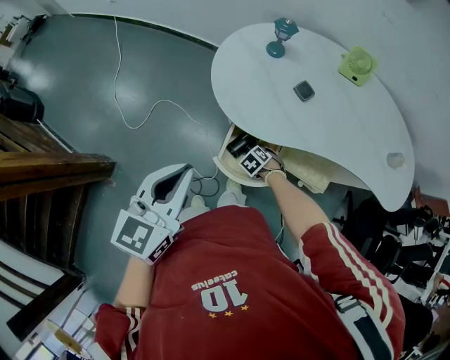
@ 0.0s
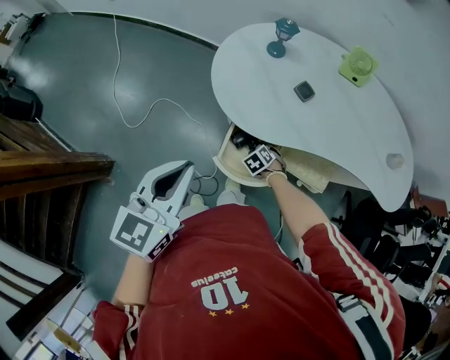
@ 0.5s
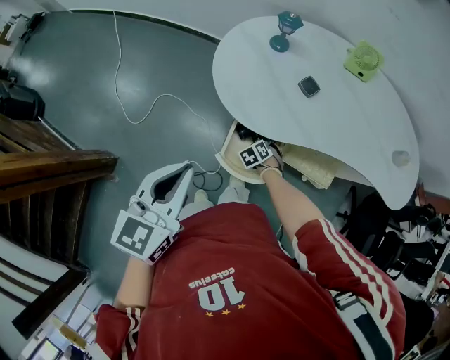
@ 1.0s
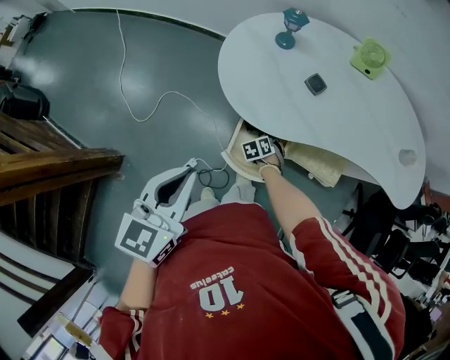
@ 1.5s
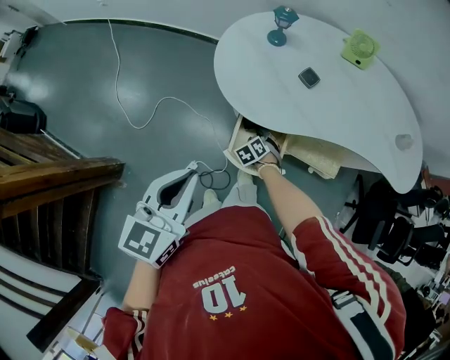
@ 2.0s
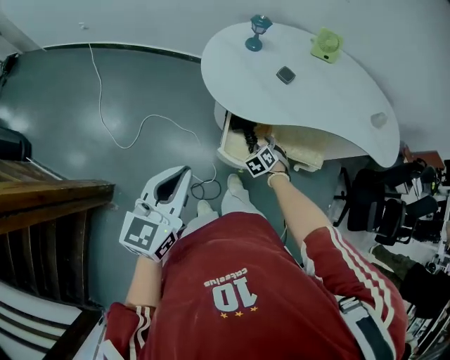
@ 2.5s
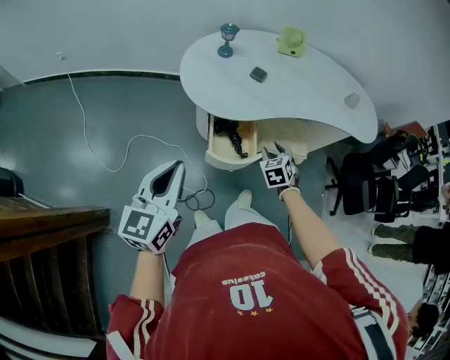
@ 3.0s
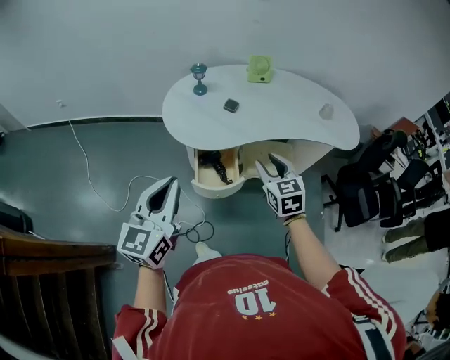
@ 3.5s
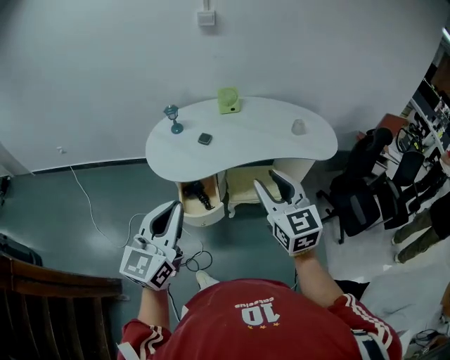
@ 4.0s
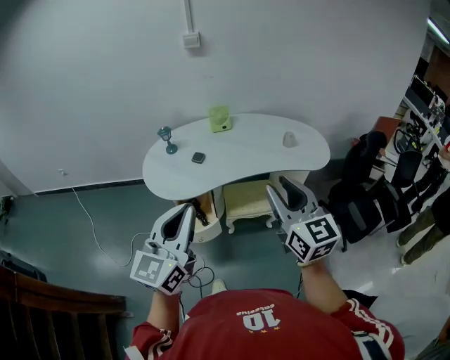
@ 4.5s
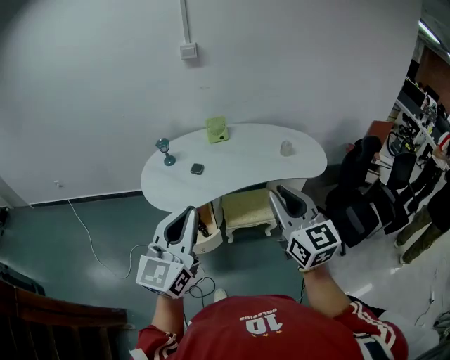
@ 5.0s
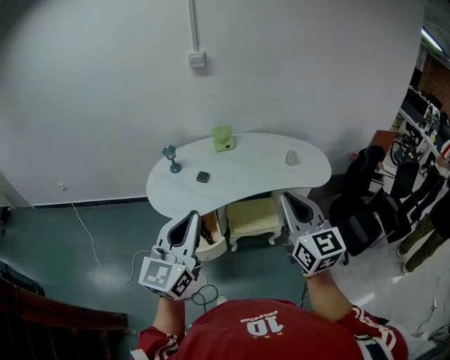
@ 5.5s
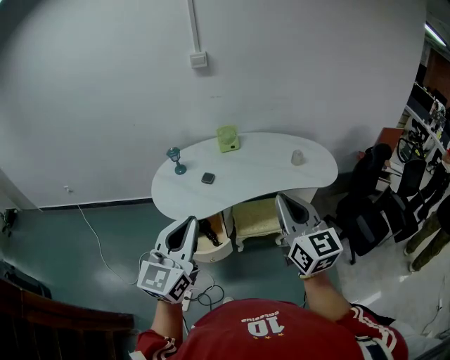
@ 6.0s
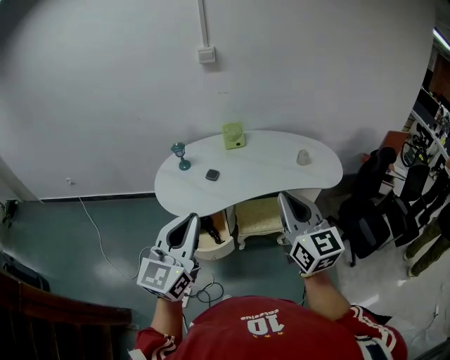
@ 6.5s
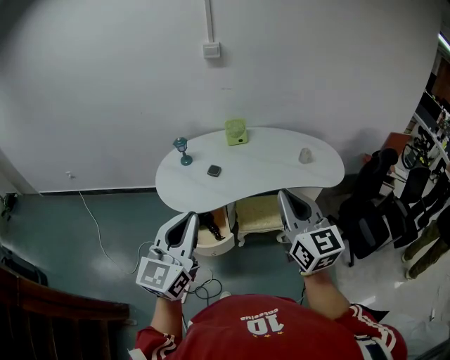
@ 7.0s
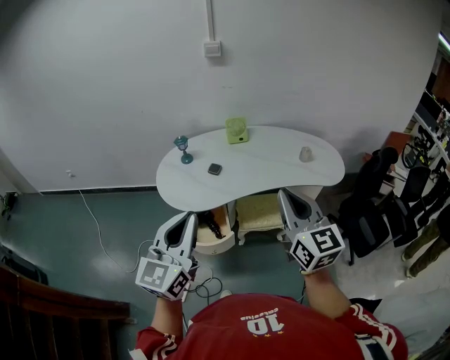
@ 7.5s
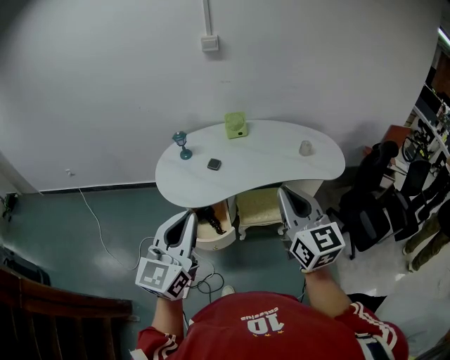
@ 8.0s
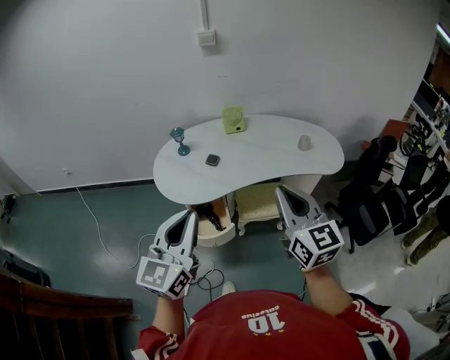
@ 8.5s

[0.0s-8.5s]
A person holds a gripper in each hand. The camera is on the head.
0.0s to 2.0s: The right gripper swivels some 20 degrees.
2.0s to 4.0s: The right gripper shifts roughly 60 cm upward and to the right, and angles its fingers upward, by approximately 60 degrees. Meanwhile the left gripper is displaced upward, to the right and backward by roughly 25 cm, and rotates approximately 30 degrees.
4.0s to 6.5s: The right gripper heads upward, covering some 5 cm, and closes up; the left gripper shifts by some 5 cm.
6.5s to 8.5s: The grippers stay close to where they were, moving slightly.

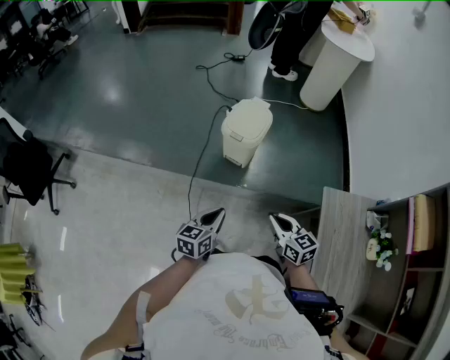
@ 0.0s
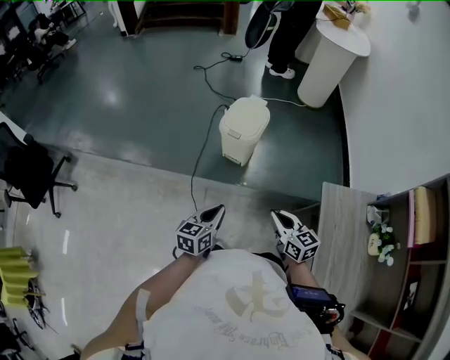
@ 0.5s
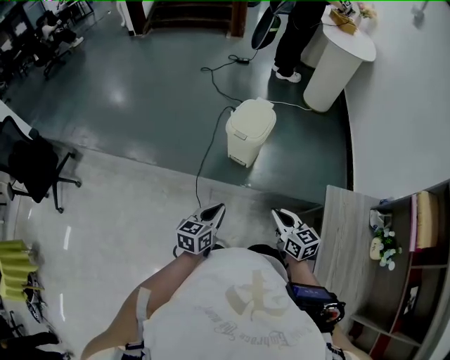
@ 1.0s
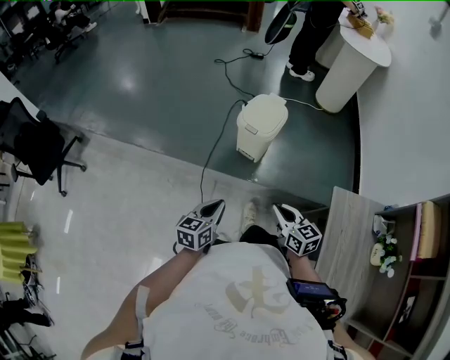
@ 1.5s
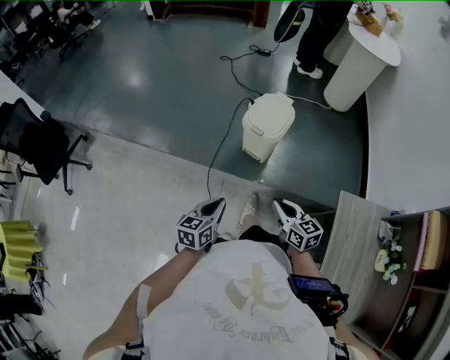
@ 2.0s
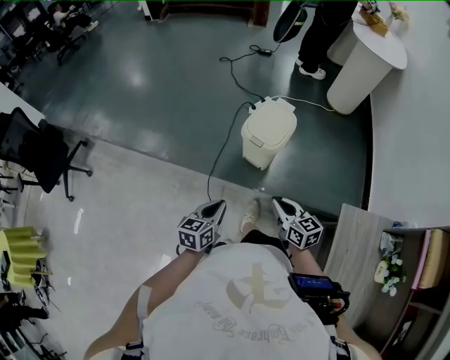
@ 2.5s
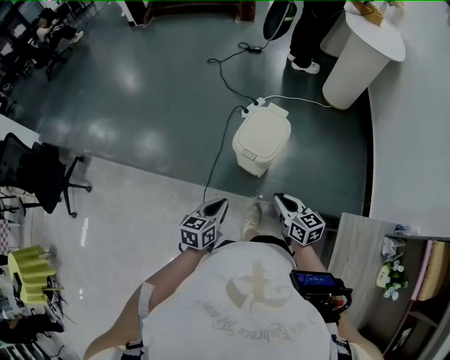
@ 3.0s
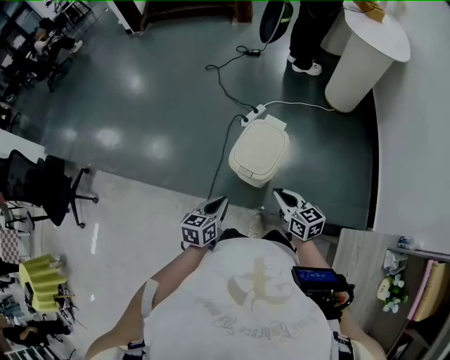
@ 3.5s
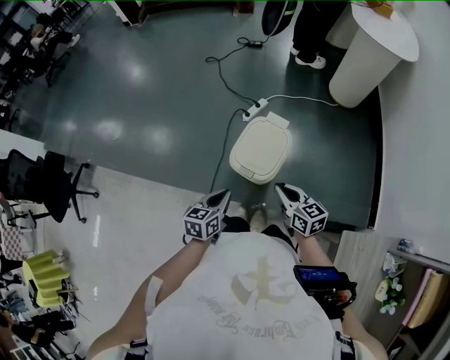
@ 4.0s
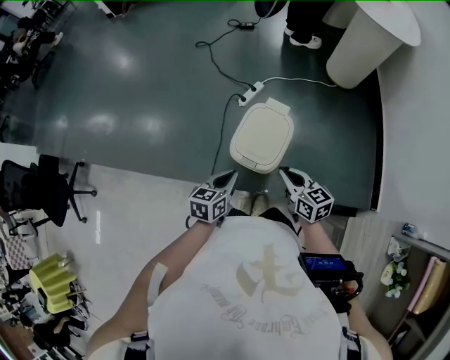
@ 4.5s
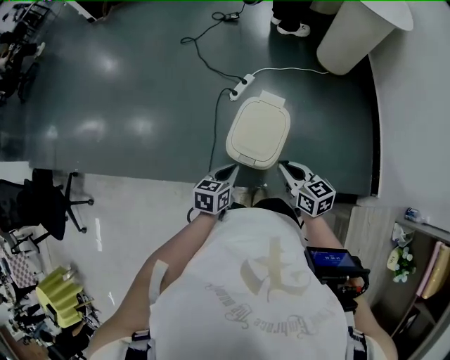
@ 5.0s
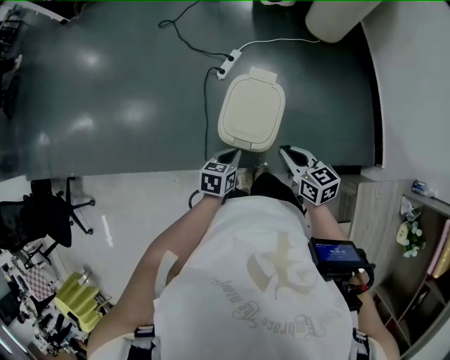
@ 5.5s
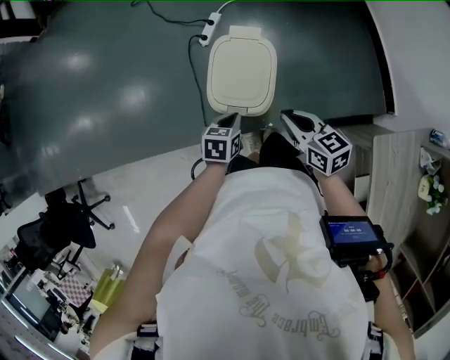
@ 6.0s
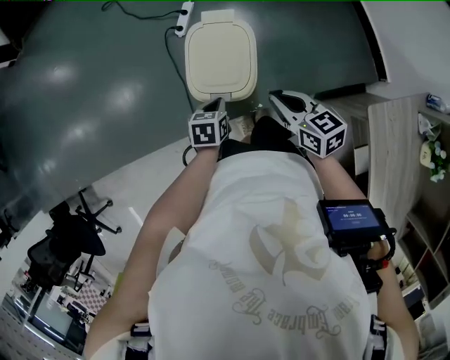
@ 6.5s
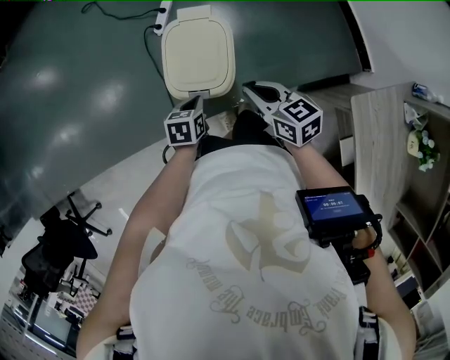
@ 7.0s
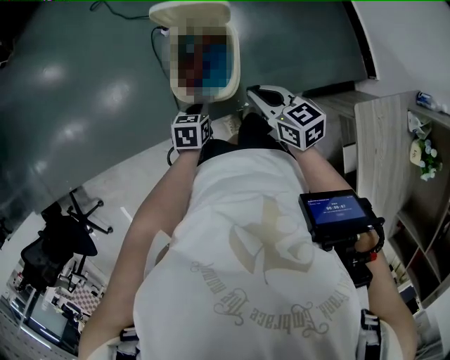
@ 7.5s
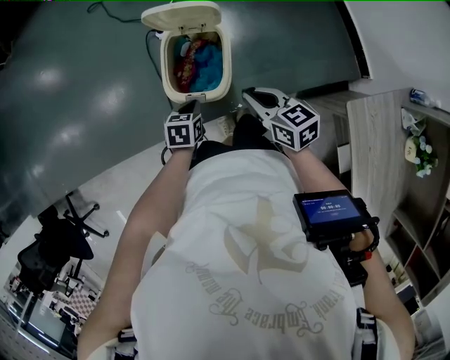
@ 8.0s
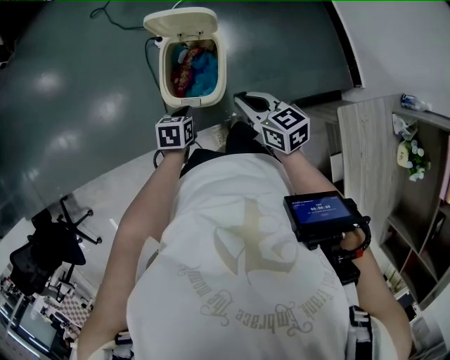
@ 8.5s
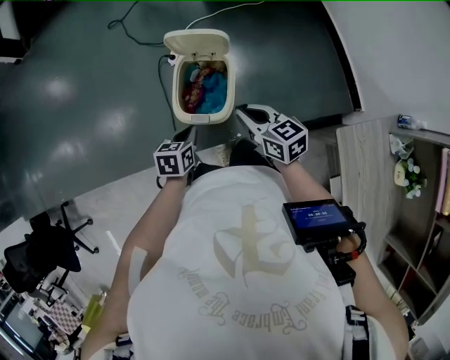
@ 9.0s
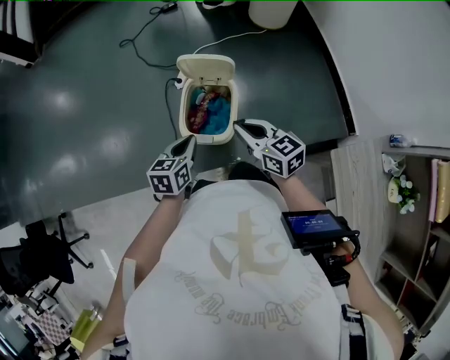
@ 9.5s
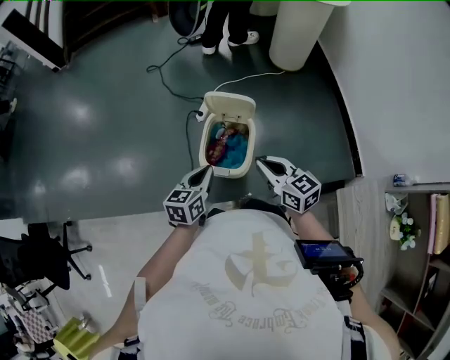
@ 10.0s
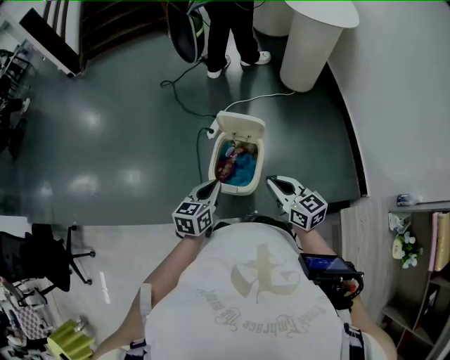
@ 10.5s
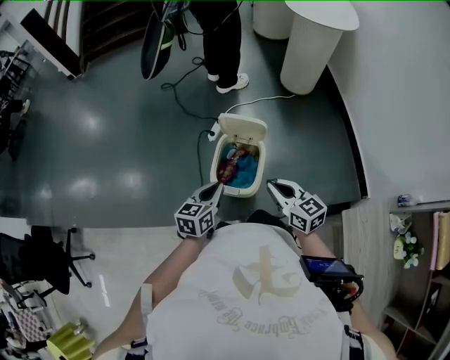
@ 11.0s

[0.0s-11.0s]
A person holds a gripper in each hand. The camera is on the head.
0.0s to 2.0s: The left gripper ends up some 5 cm from where it was. The right gripper shifts roughly 5 cm forward.
2.0s to 3.5s: Both grippers travel together forward, roughly 25 cm.
3.5s to 5.5s: The right gripper is displaced forward and downward by about 10 cm, while the left gripper travels forward and downward by approximately 15 cm, and changes its angle by roughly 20 degrees.
5.5s to 7.5s: The left gripper heads downward, covering roughly 5 cm.
7.5s to 9.0s: The left gripper moves roughly 5 cm.
9.0s to 11.0s: The right gripper travels upward by approximately 10 cm; the left gripper goes about 15 cm upward, and rotates about 20 degrees.

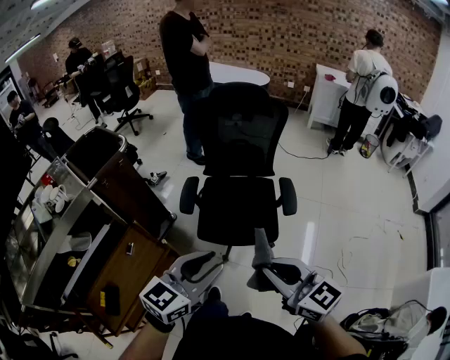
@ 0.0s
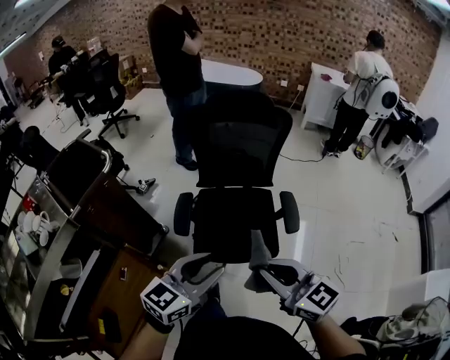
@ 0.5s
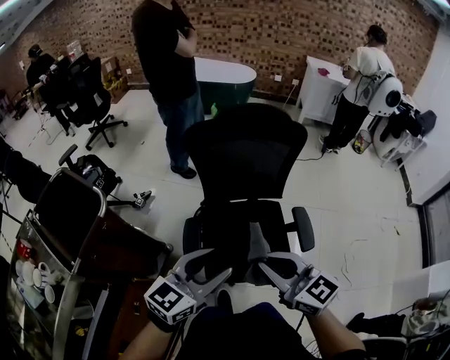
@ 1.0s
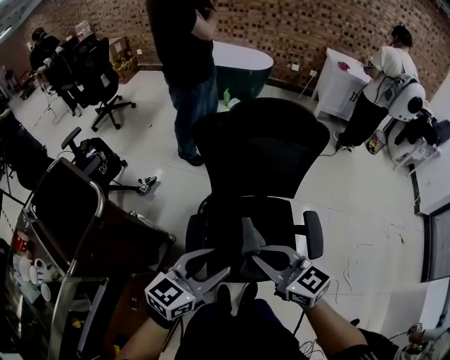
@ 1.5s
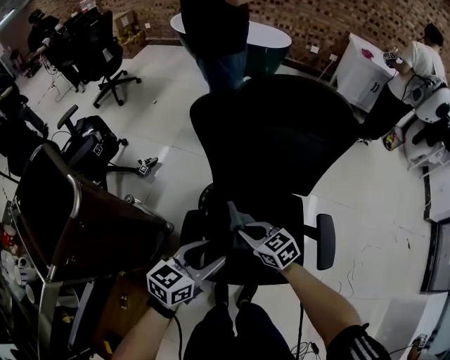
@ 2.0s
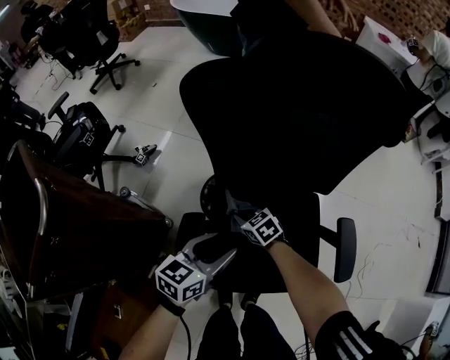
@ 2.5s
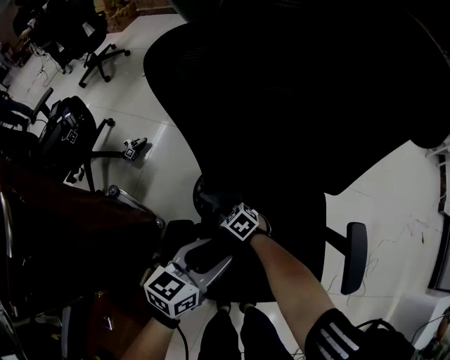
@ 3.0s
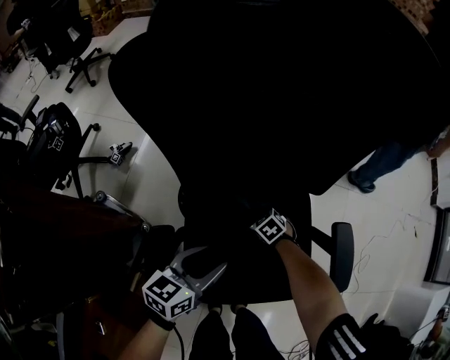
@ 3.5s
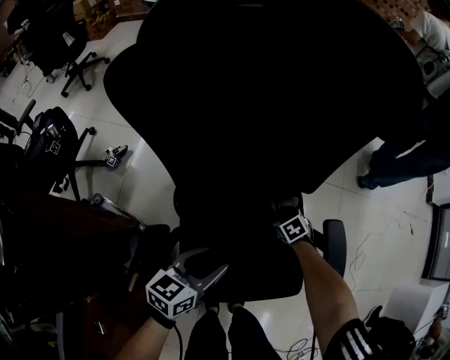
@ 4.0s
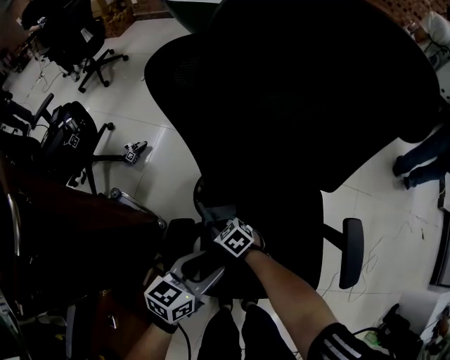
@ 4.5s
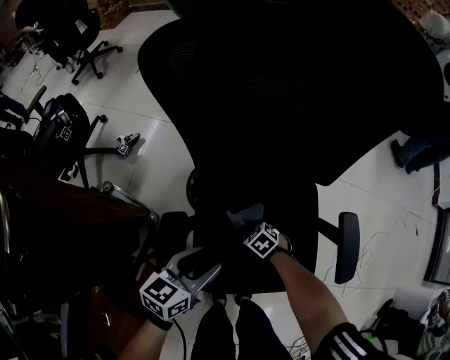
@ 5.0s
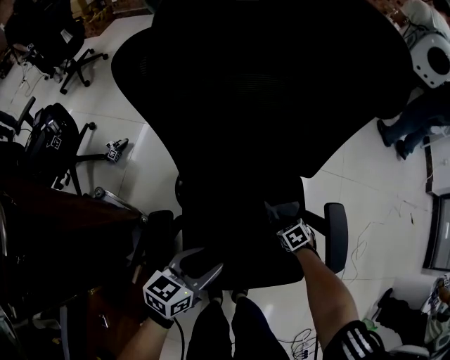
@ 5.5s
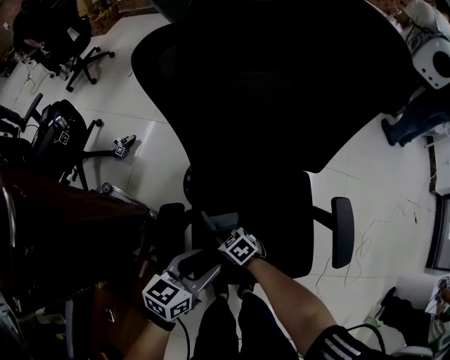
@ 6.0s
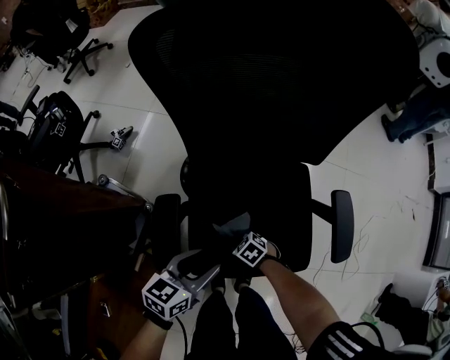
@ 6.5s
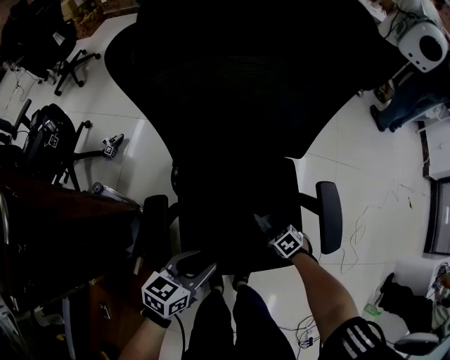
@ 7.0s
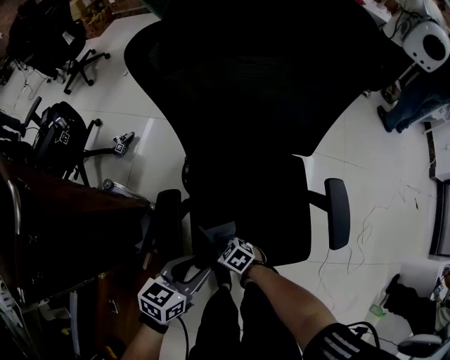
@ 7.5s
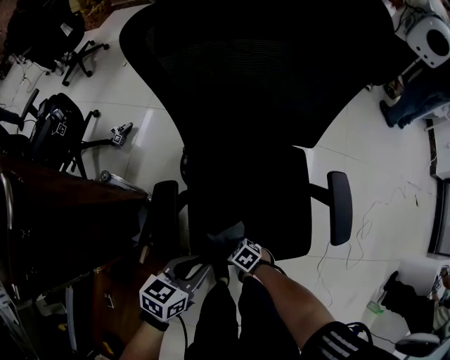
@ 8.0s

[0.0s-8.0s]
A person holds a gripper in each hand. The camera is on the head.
0.0s to 2.0s: The two grippers travel together, forward, some 50 cm. Both grippers move downward, about 30 cm. The left gripper swivels roughly 20 degrees, while the right gripper rotates roughly 30 degrees.
2.0s to 4.0s: The right gripper moves downward and to the right, approximately 40 cm, and angles its fingers downward, by roughly 30 degrees. The left gripper is displaced downward and to the right by some 20 cm.
4.0s to 6.0s: The right gripper moves left and right over approximately 30 cm, changing direction 2 times, and swivels some 20 degrees; the left gripper swings left and right, roughly 5 cm each way, with 2 reversals.
6.0s to 8.0s: The right gripper swings up and down, approximately 5 cm each way, with 2 reversals. The left gripper changes place by some 10 cm, and closes up.
